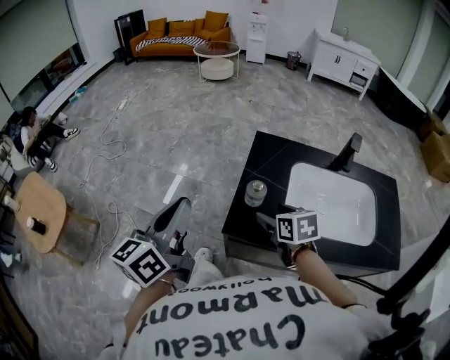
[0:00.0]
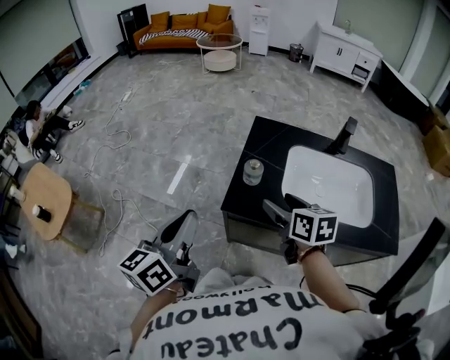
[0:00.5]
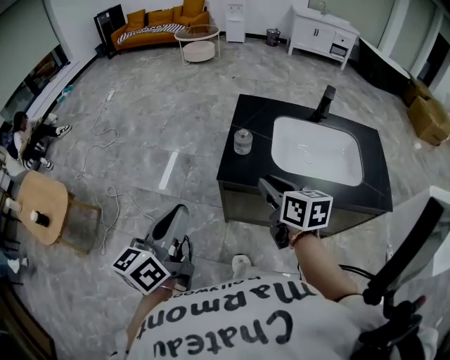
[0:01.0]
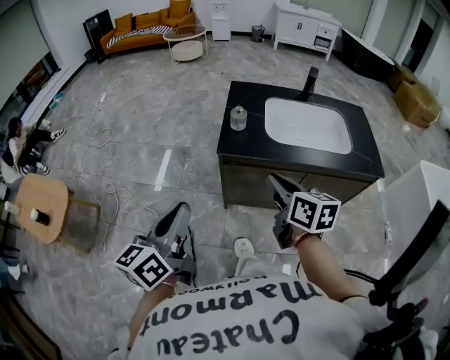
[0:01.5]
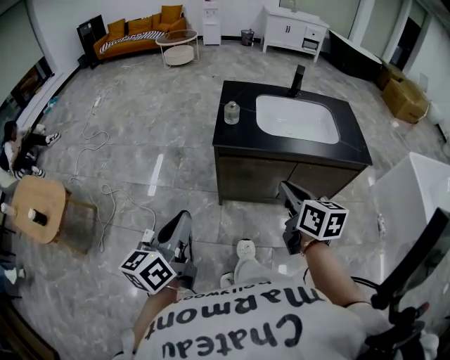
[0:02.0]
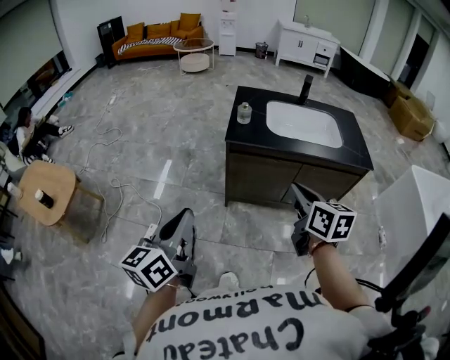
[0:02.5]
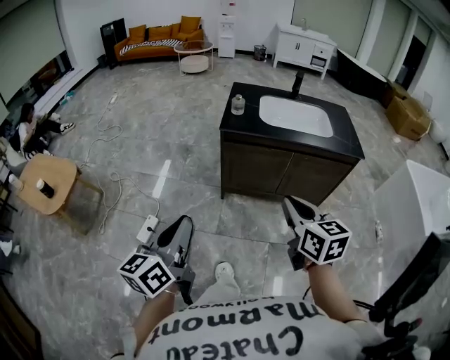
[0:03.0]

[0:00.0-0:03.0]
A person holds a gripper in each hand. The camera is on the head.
0:00.0 to 0:01.5: The left gripper moves backward, approximately 25 cm. Meanwhile the right gripper goes some 30 cm backward and upward, rotates some 30 degrees, and closes up.
0:01.5 to 0:03.0: Both grippers travel together backward, approximately 25 cm.

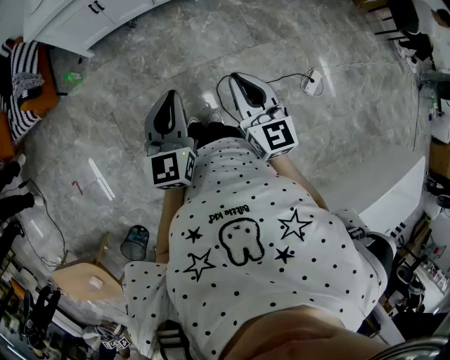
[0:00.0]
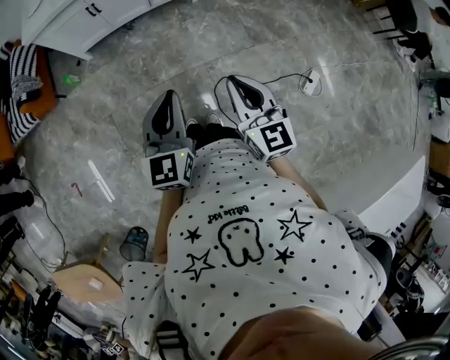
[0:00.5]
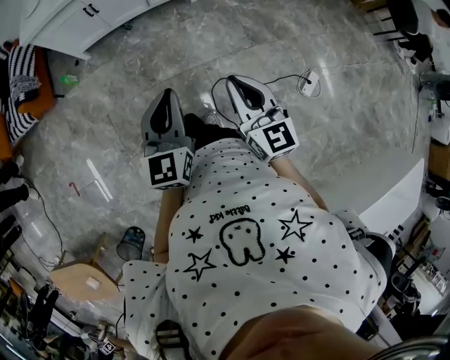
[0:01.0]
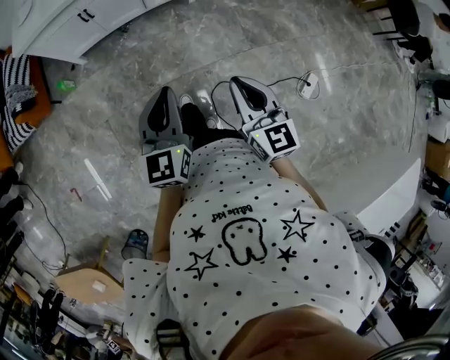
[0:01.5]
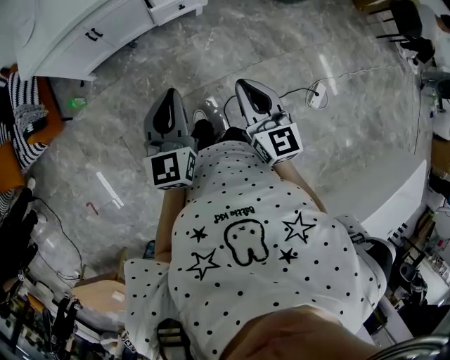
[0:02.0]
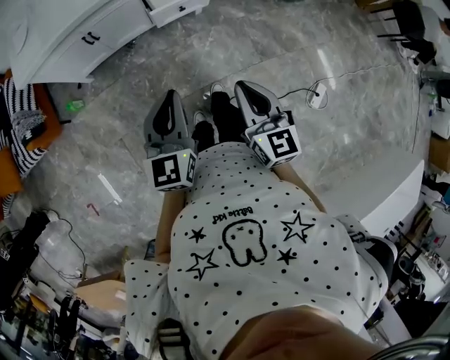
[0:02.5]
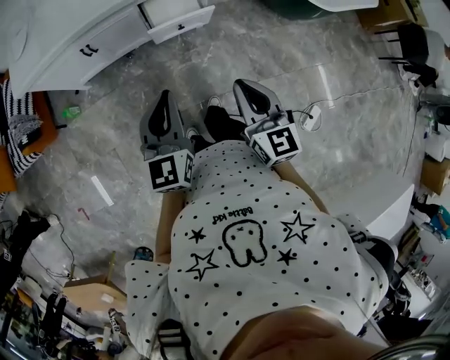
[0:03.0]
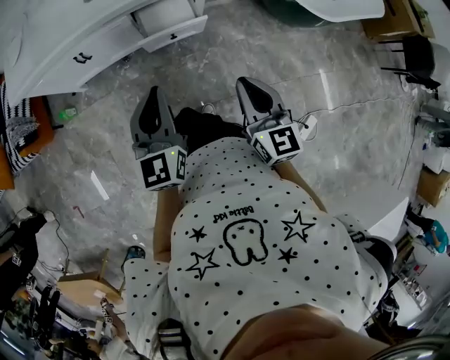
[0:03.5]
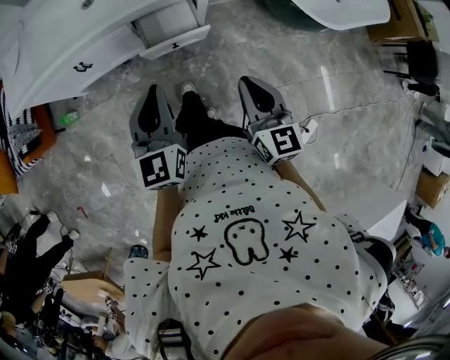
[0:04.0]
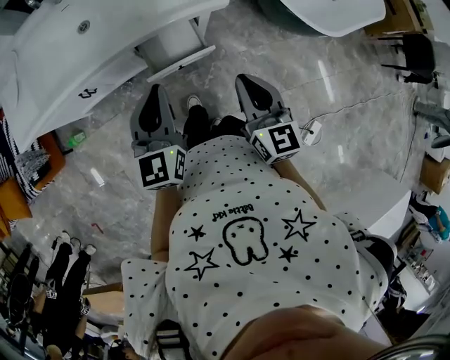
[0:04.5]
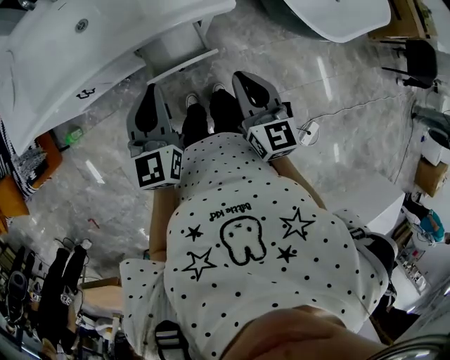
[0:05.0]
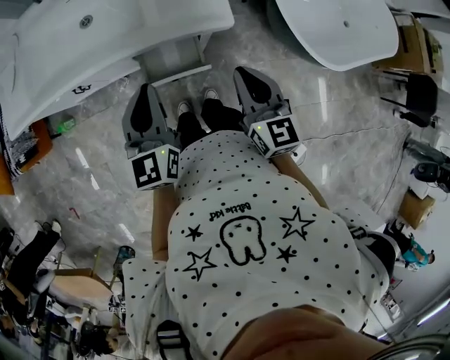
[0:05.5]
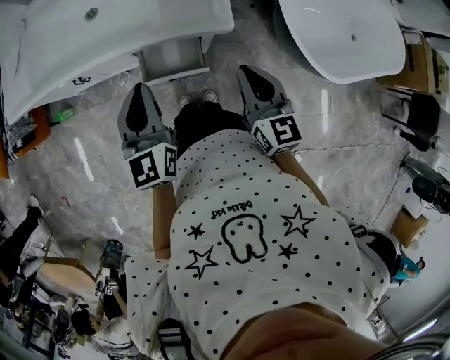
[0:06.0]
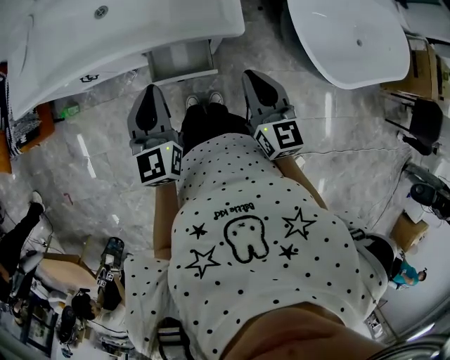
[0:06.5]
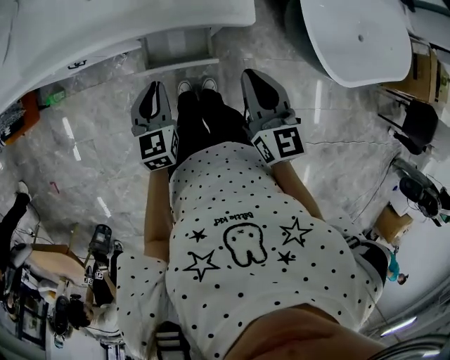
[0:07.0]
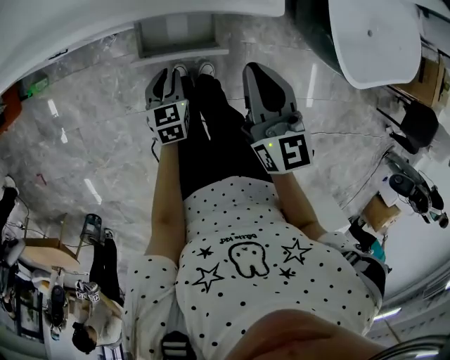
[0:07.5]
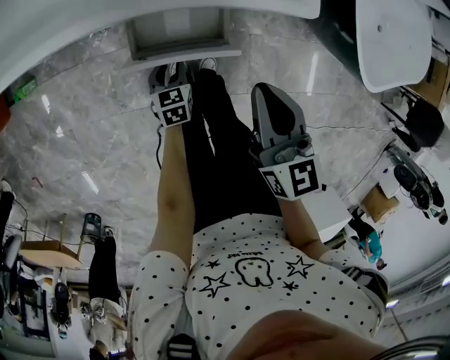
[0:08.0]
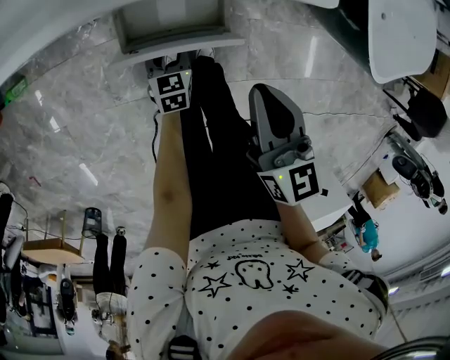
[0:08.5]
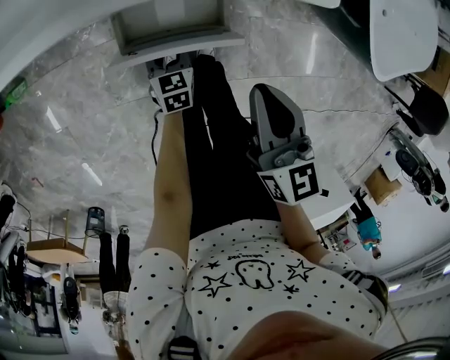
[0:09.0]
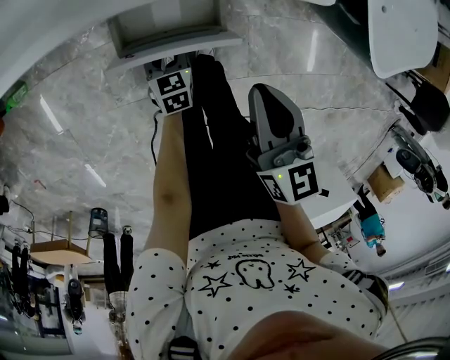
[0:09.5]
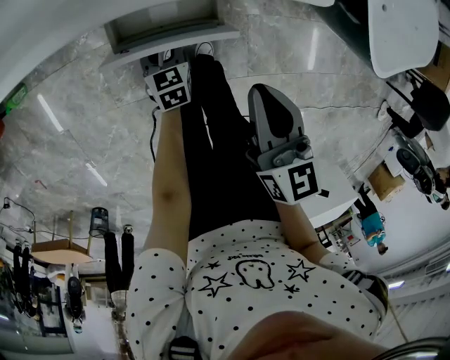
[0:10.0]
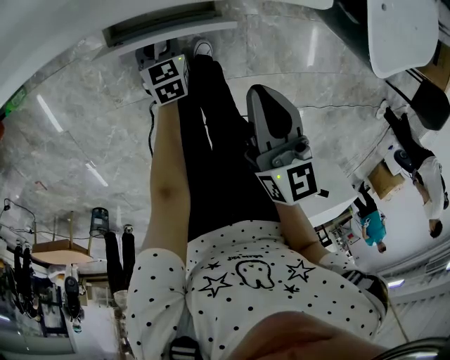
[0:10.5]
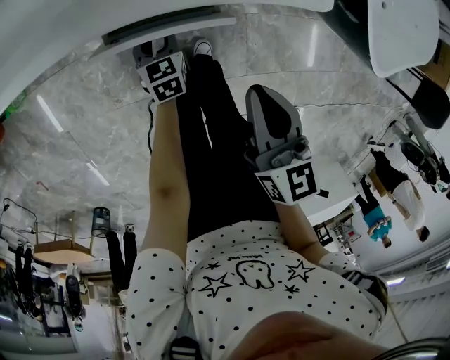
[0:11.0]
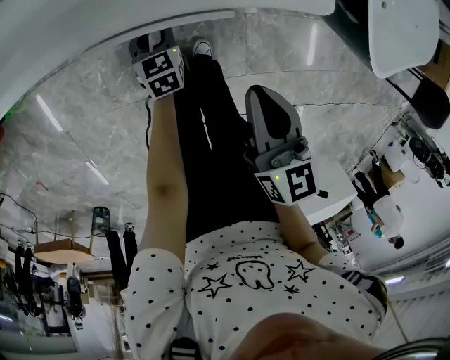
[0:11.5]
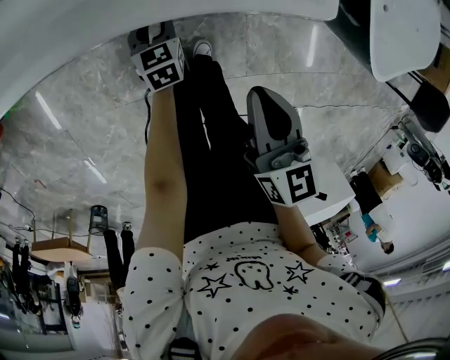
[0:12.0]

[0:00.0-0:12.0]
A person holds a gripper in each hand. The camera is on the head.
0:00.0 to 0:02.0: Both grippers move forward, roughly 20 cm.
0:02.0 to 0:04.0: The left gripper travels forward and back again, approximately 15 cm each way; the right gripper travels forward and back again, approximately 15 cm each way.
0:04.0 to 0:06.0: There are only small adjustments of the grippers.
0:06.0 to 0:08.0: The left gripper heads downward, covering approximately 50 cm, points its fingers roughly 40 degrees further downward, and opens its fingers, while the right gripper heads downward and to the left, covering roughly 15 cm.
0:08.0 to 0:10.0: The left gripper changes place by some 5 cm, while the right gripper changes place by about 5 cm.
0:10.0 to 0:12.0: The left gripper goes approximately 10 cm forward.

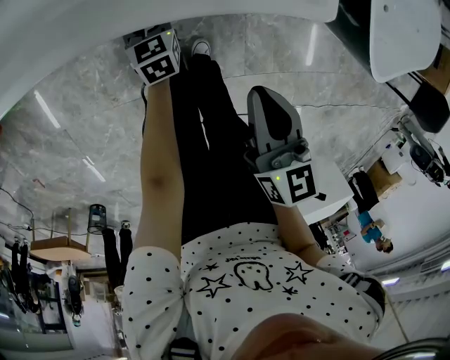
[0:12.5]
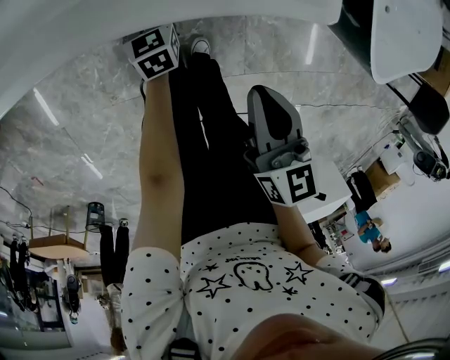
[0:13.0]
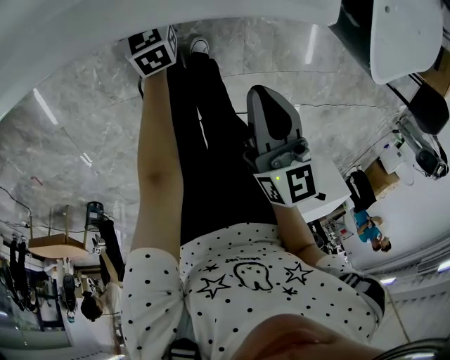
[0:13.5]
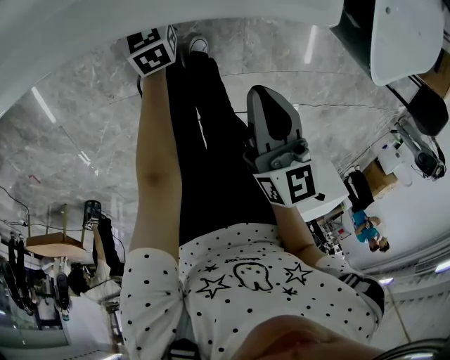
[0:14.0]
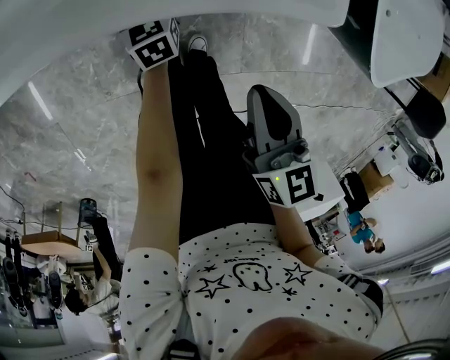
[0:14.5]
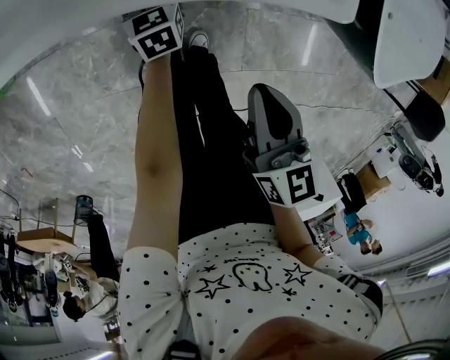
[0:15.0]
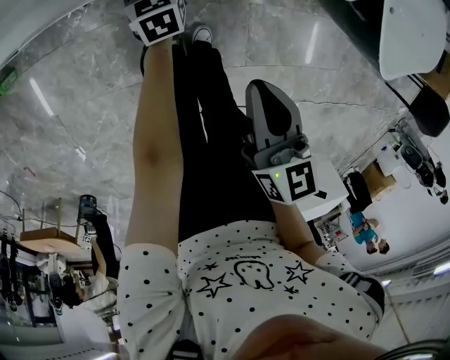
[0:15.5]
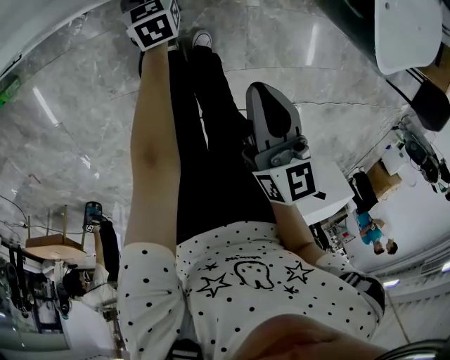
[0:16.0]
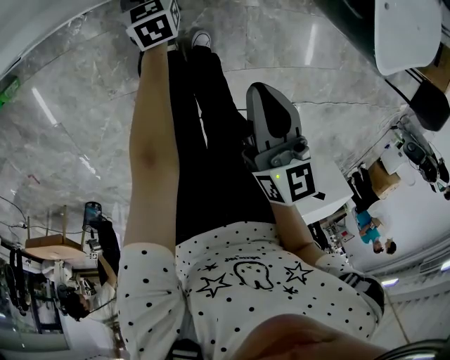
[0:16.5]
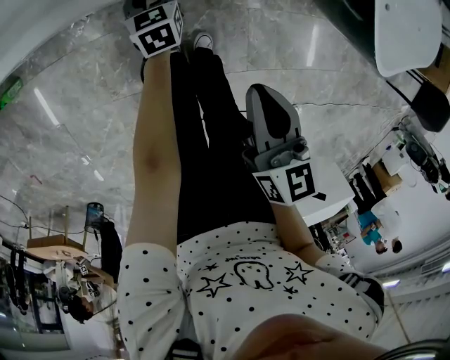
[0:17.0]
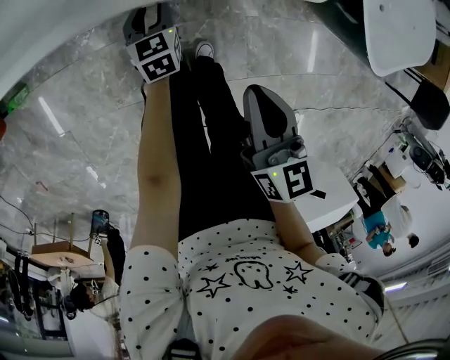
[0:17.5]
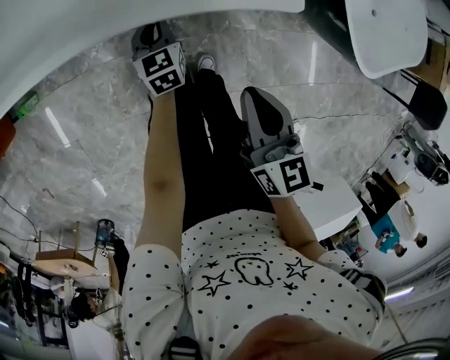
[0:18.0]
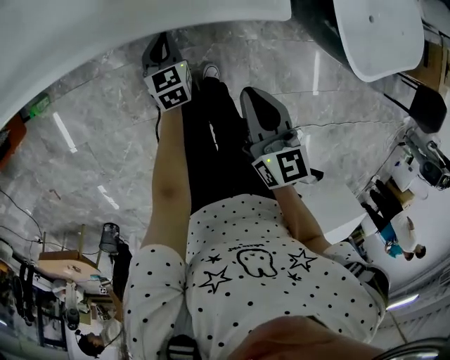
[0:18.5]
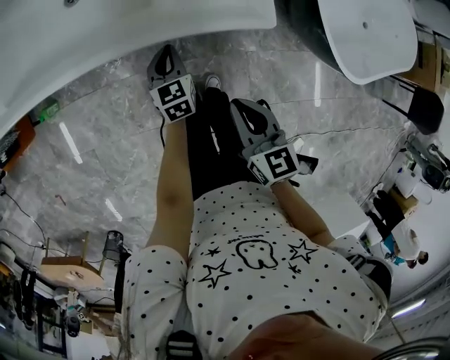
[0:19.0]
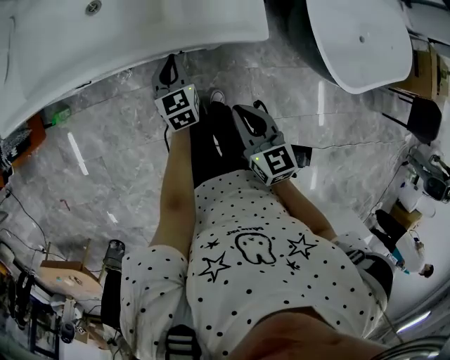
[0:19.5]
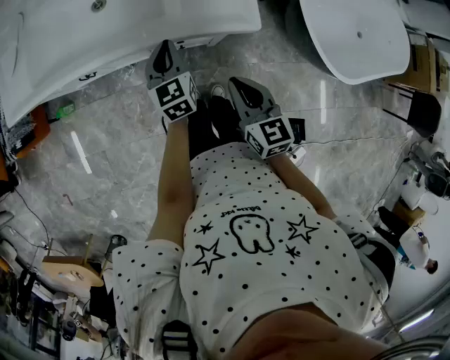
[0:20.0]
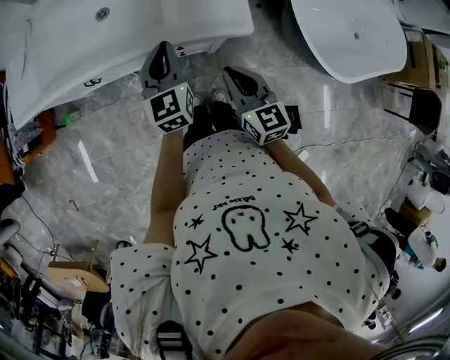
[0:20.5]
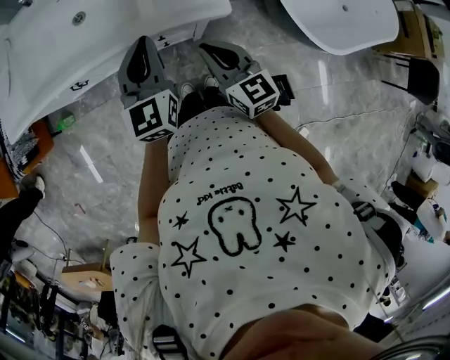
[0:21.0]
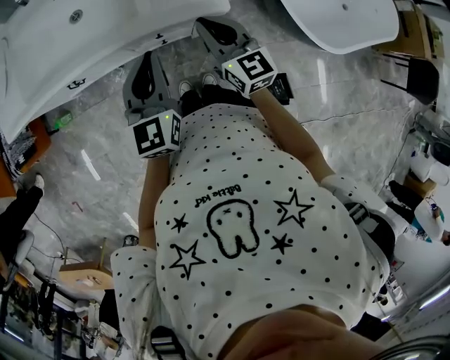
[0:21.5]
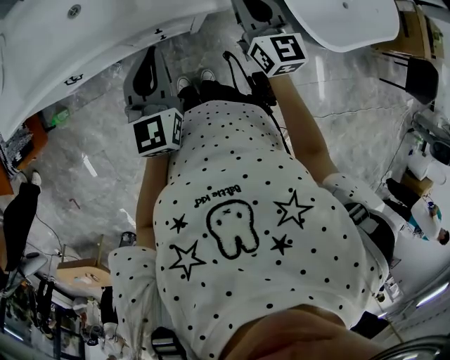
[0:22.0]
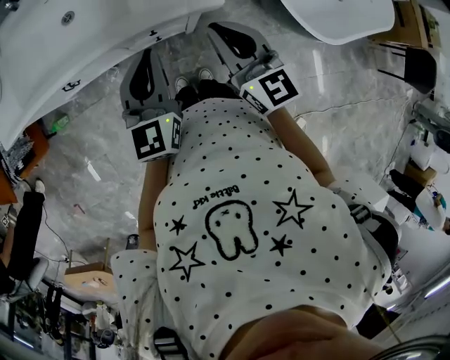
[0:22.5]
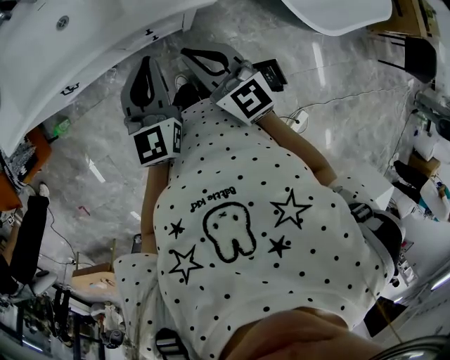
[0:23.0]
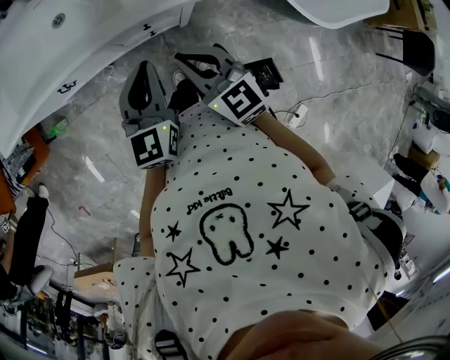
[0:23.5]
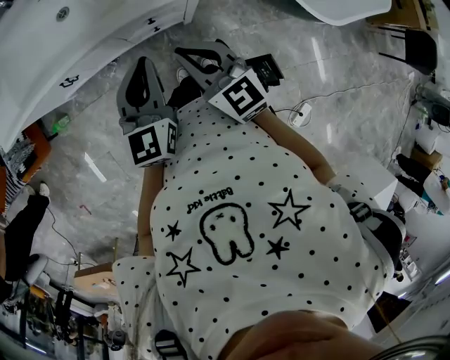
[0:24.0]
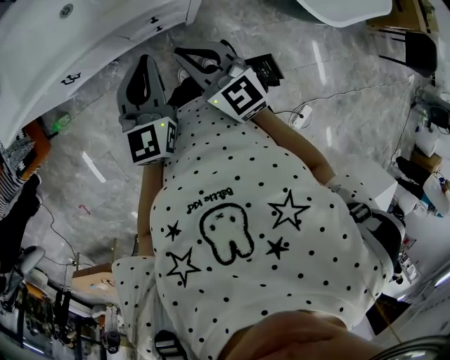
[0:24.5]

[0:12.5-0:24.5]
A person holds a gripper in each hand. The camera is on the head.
0:12.5 to 0:16.5: The grippers stay close to where they were, moving slightly.
0:16.5 to 0:18.5: The left gripper goes about 15 cm upward, and closes its fingers. The right gripper heads upward, covering some 5 cm.
0:18.5 to 0:20.5: The left gripper moves upward, approximately 30 cm, and swivels some 20 degrees. The right gripper shifts some 10 cm upward.
0:20.5 to 0:22.5: The left gripper heads backward and upward, covering some 10 cm. The right gripper moves upward, about 10 cm, and travels to the right and back again, roughly 10 cm each way.
0:22.5 to 0:24.5: The left gripper changes place by about 5 cm. Meanwhile the right gripper travels to the left, backward and downward by approximately 15 cm.
